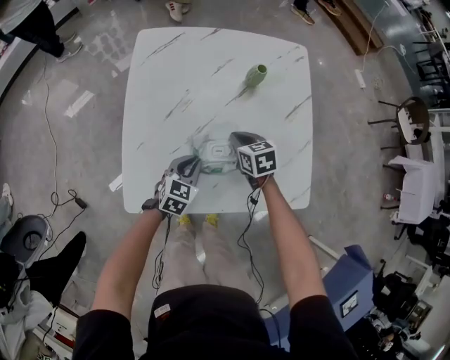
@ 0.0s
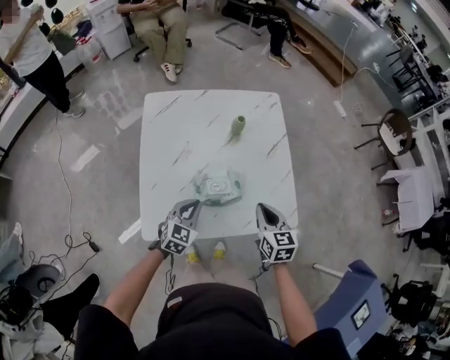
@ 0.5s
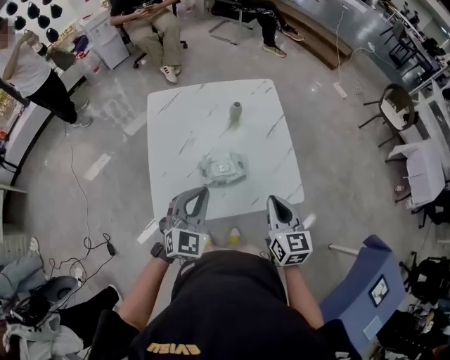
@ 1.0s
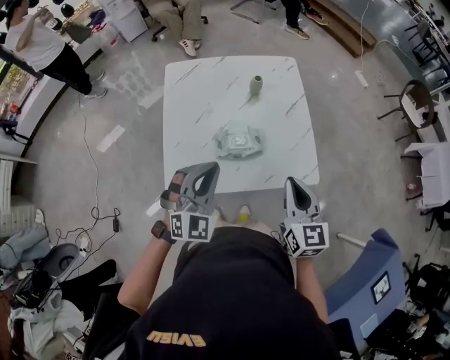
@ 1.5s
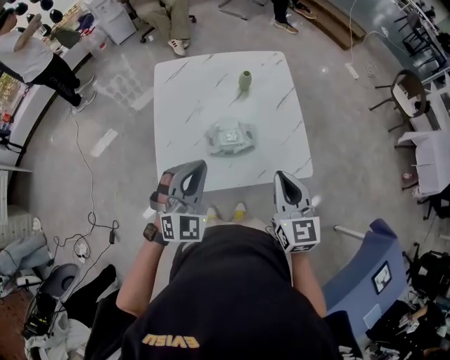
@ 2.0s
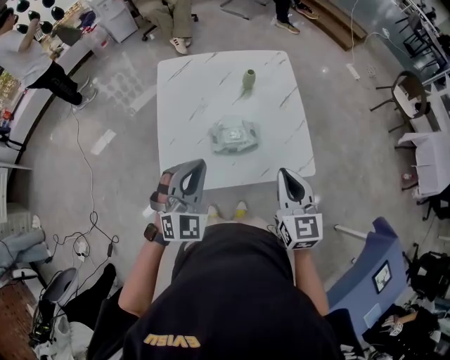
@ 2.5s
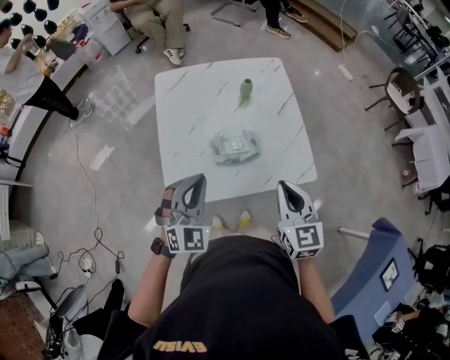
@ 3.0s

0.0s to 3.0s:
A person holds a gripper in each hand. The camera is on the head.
0.0s to 1.5s: The right gripper is displaced upward and backward by approximately 40 cm, and points its fingers roughly 30 degrees further upward. The left gripper heads upward, covering approximately 35 cm, and swivels roughly 50 degrees.
1.5s to 3.0s: The left gripper changes place by roughly 5 cm.

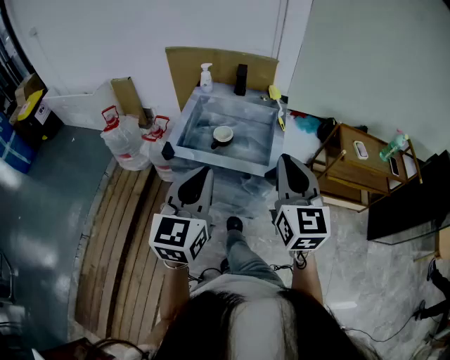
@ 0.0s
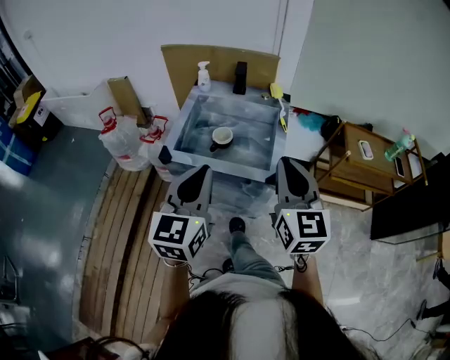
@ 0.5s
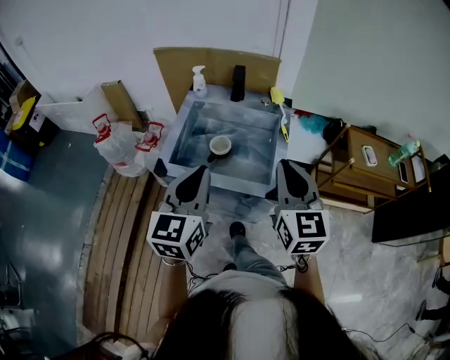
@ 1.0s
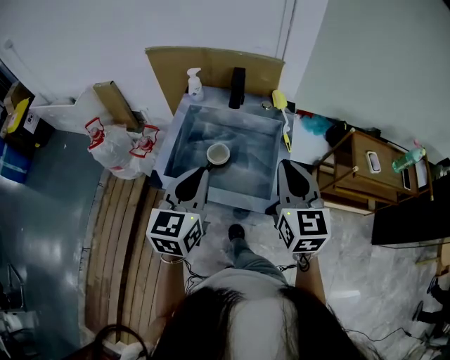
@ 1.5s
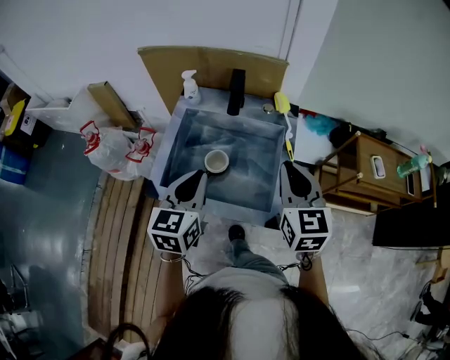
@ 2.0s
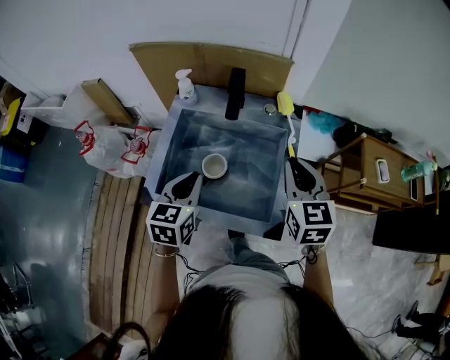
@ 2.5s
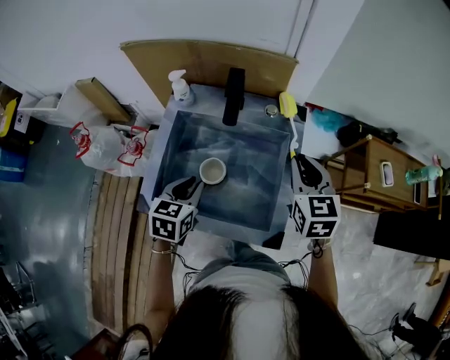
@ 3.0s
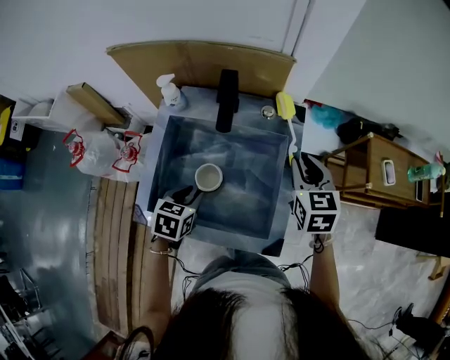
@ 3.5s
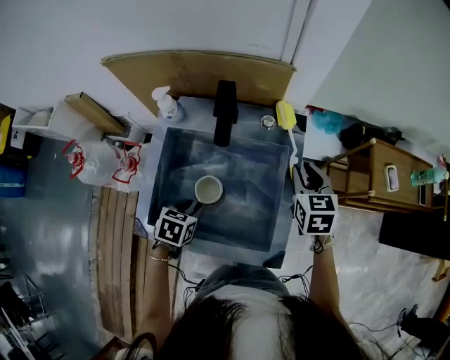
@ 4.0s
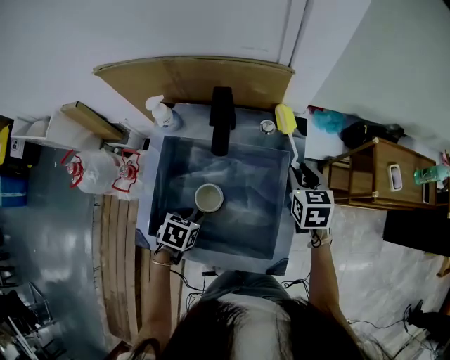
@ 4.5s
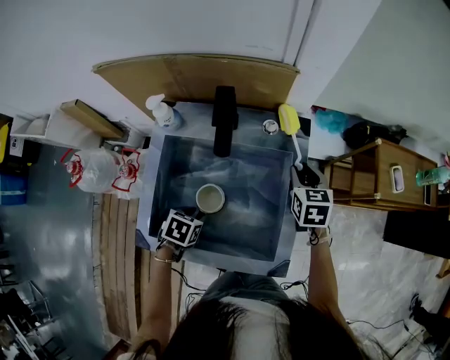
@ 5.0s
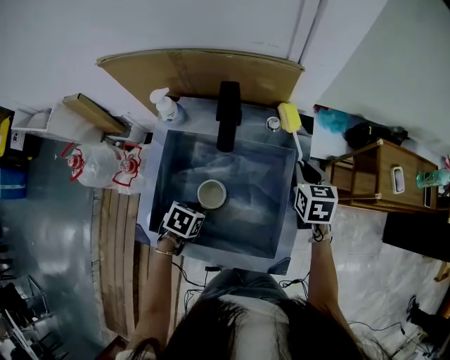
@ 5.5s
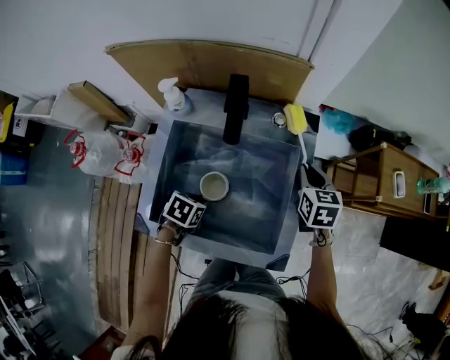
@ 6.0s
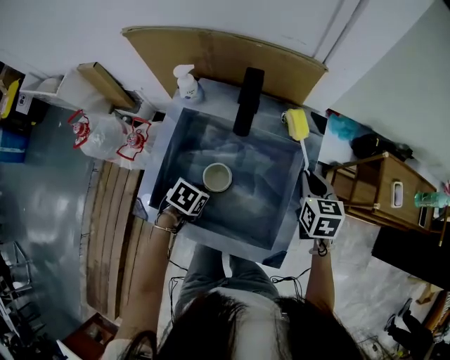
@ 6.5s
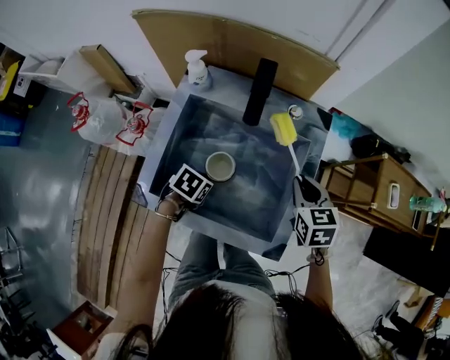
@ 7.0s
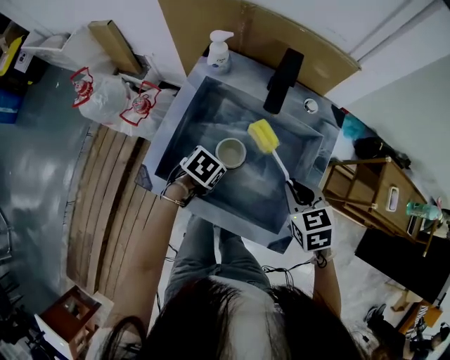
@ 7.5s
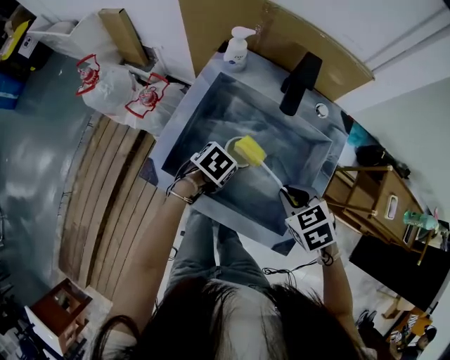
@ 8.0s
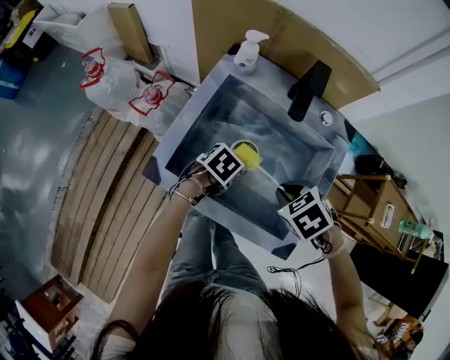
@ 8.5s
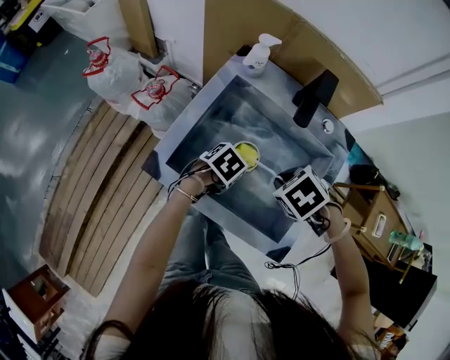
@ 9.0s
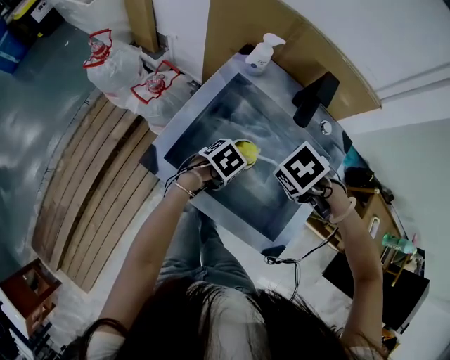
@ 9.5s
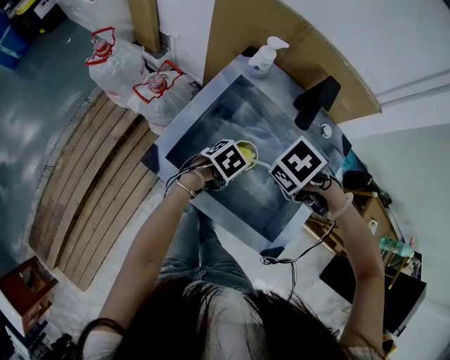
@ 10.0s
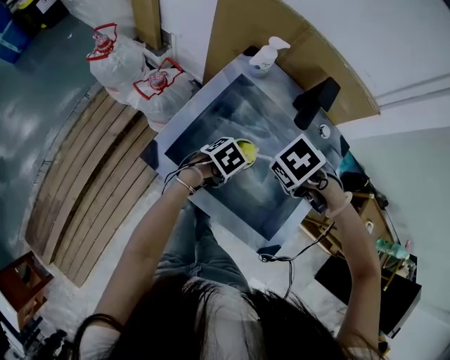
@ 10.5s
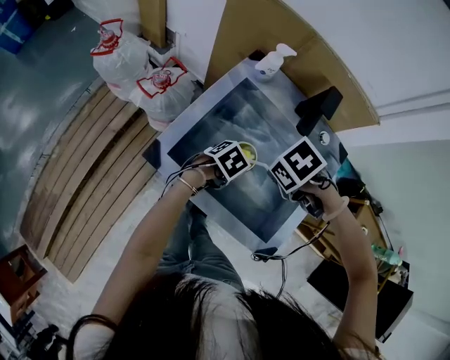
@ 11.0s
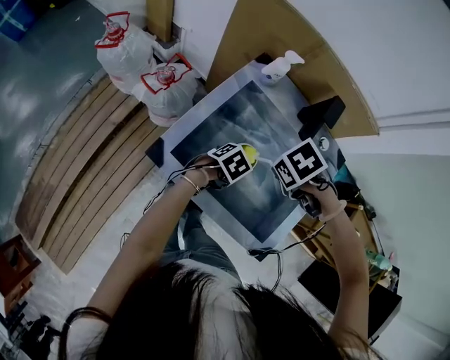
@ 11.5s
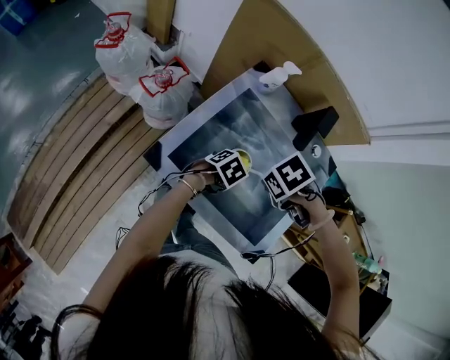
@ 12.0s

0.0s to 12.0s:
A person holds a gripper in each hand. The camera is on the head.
0.0s to 2.0s: The left gripper travels forward and downward by roughly 30 cm; the right gripper shifts approximately 25 cm forward.
2.0s to 4.0s: The right gripper goes approximately 25 cm forward and downward, and swivels roughly 20 degrees. Meanwhile the left gripper travels downward by about 25 cm, points its fingers some 40 degrees further downward, and opens up.
4.0s to 6.0s: The right gripper shifts about 5 cm downward.
6.0s to 8.0s: The right gripper travels backward and to the left by some 20 cm, and rotates approximately 50 degrees.
8.0s to 10.0s: The right gripper changes place by some 10 cm, and turns by roughly 30 degrees.
10.0s to 12.0s: The grippers move only a little.

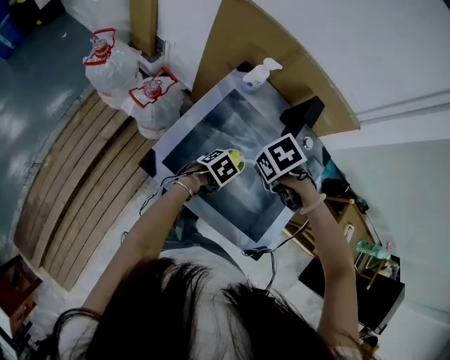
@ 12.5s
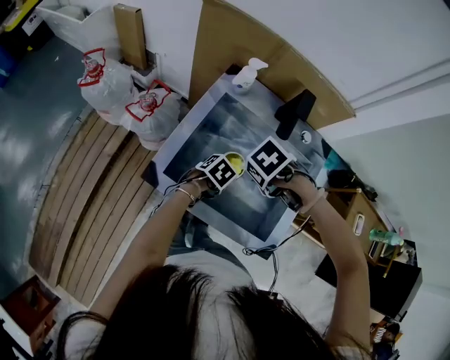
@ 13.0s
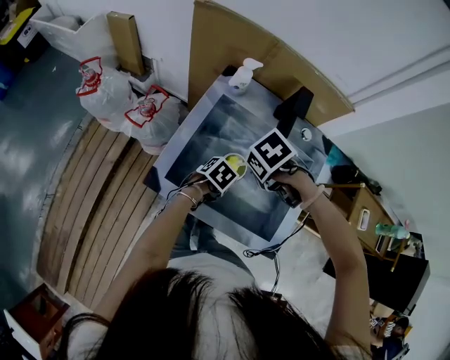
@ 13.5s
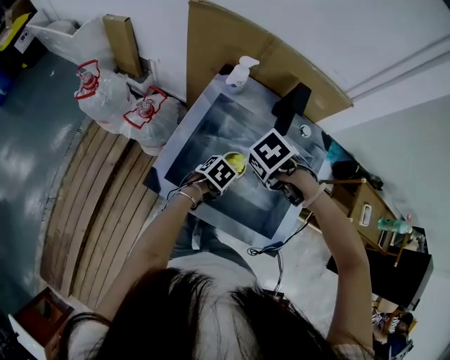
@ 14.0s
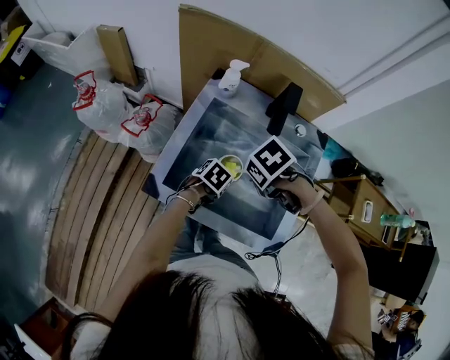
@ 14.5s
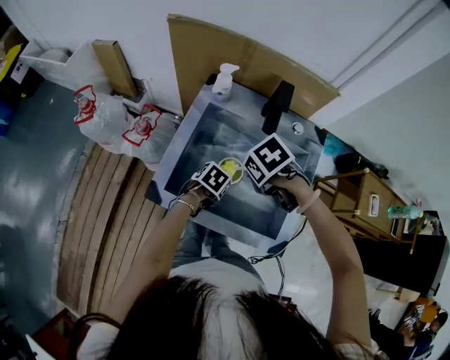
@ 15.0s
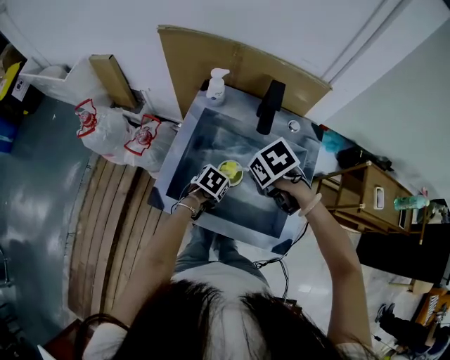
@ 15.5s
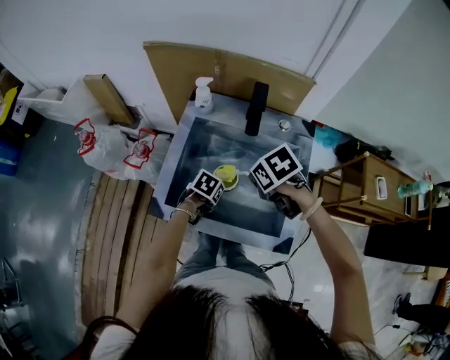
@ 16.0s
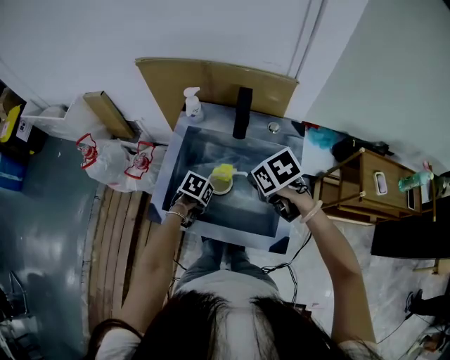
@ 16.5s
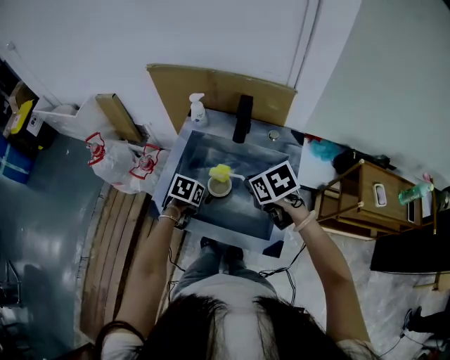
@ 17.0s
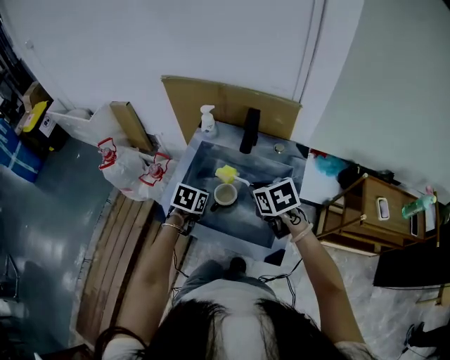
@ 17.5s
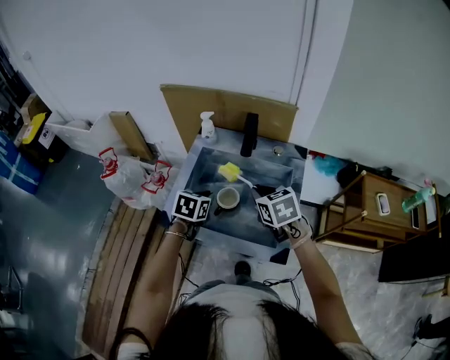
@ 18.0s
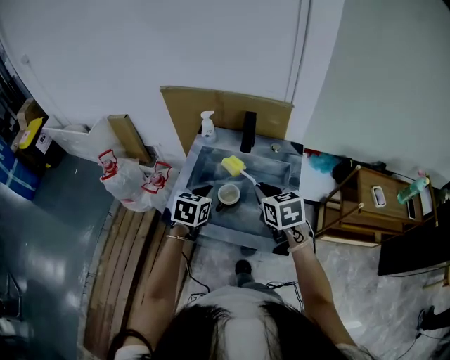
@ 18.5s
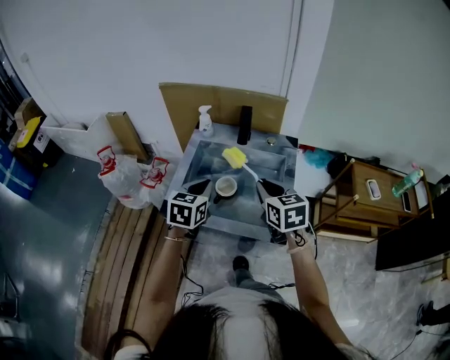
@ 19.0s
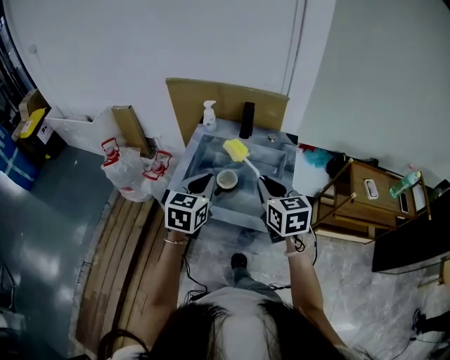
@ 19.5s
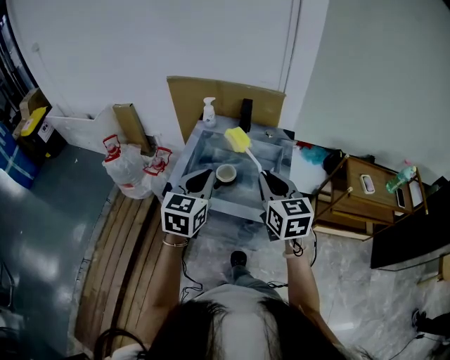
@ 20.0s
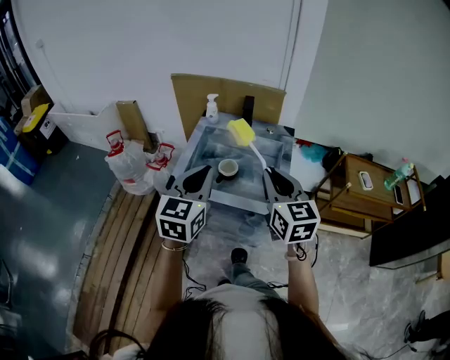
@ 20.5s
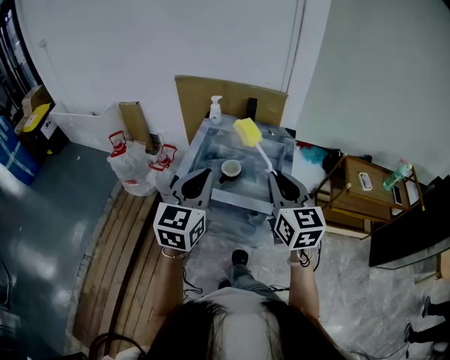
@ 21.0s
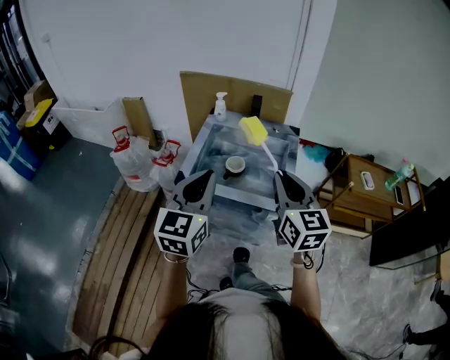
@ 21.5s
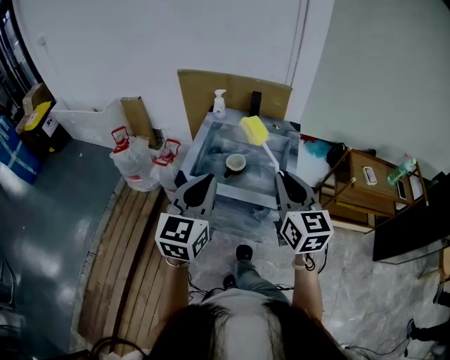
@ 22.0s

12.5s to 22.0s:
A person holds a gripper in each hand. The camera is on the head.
12.5s to 14.5s: There are only small adjustments of the grippers.
14.5s to 16.5s: The right gripper changes place by some 5 cm, and swivels roughly 30 degrees.
16.5s to 18.0s: The right gripper turns by about 30 degrees. The left gripper shifts approximately 15 cm upward, and swivels roughly 30 degrees.
18.0s to 20.0s: The left gripper moves upward and backward, about 25 cm, and tilts its fingers roughly 30 degrees upward. Meanwhile the right gripper heads backward and upward, covering approximately 20 cm, and rotates about 30 degrees.
20.0s to 22.0s: Both grippers move backward and upward, roughly 10 cm.

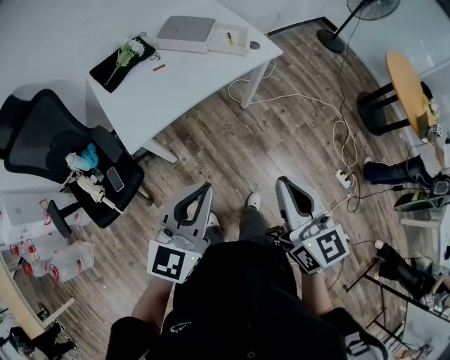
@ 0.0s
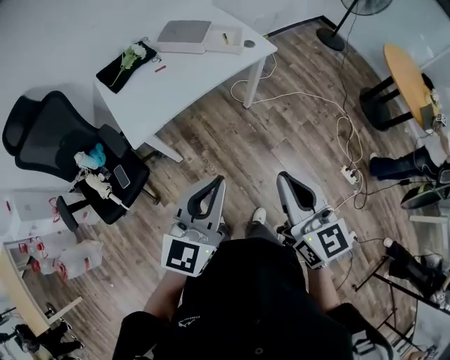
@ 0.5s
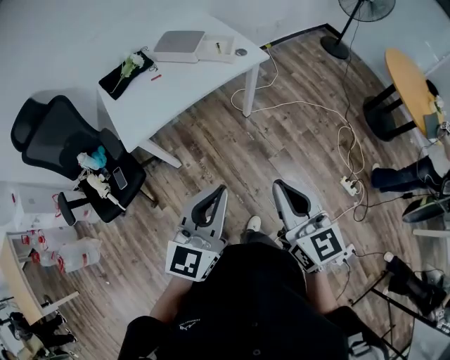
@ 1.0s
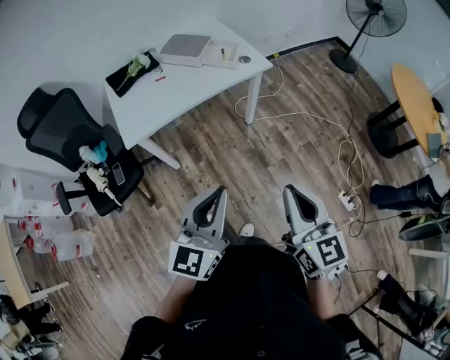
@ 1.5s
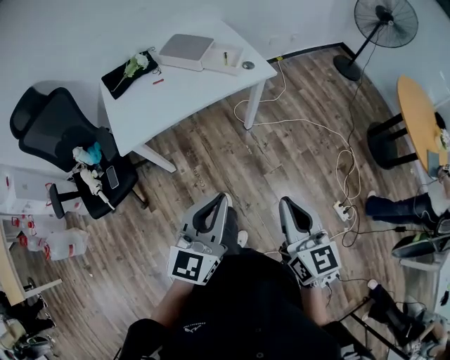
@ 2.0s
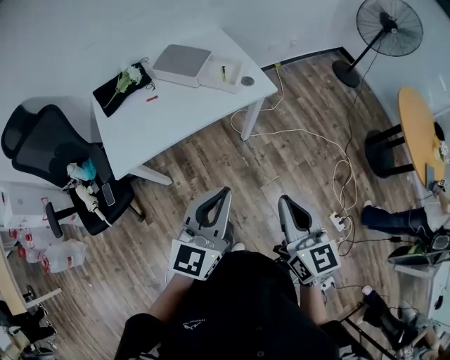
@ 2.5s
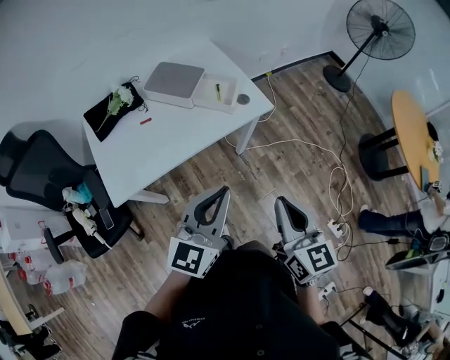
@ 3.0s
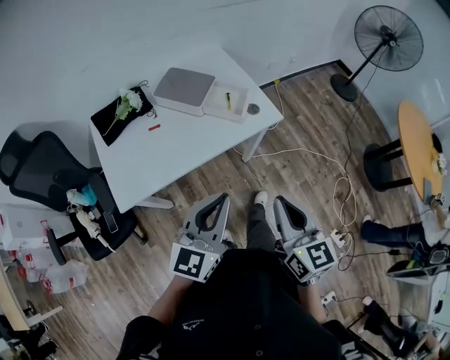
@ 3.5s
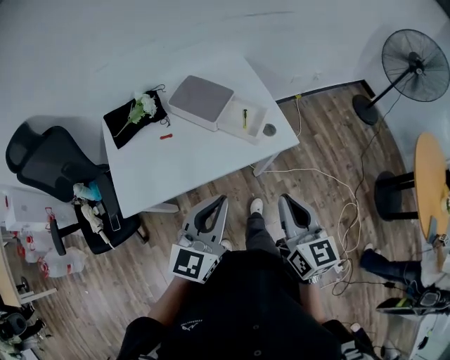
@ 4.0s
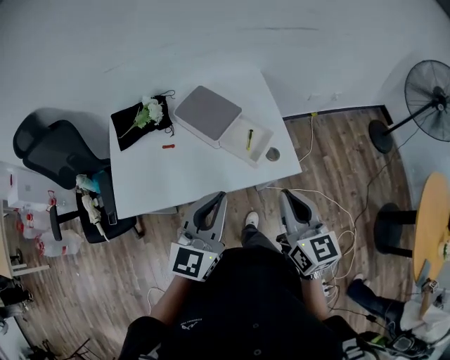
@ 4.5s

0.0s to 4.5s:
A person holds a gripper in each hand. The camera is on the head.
0.0s to 2.0s: Both grippers move to the right, some 20 cm.
2.0s to 4.5s: The pair of grippers is taken forward, about 50 cm.
